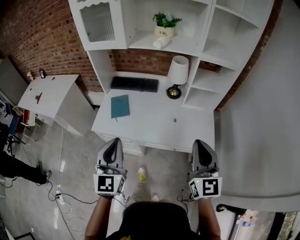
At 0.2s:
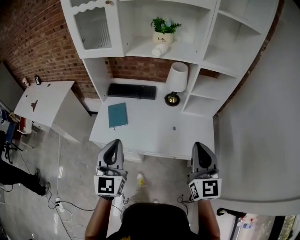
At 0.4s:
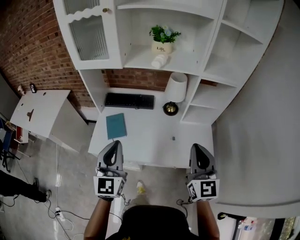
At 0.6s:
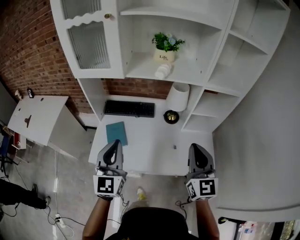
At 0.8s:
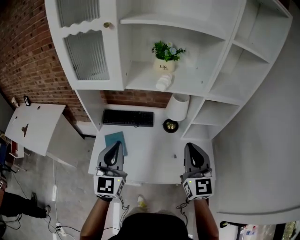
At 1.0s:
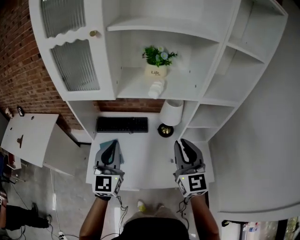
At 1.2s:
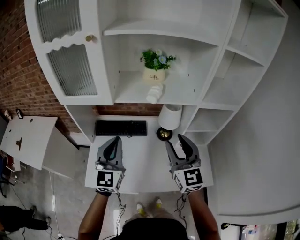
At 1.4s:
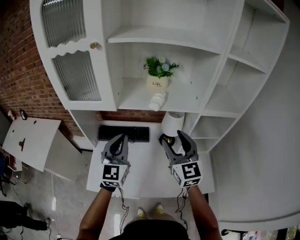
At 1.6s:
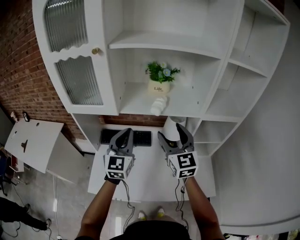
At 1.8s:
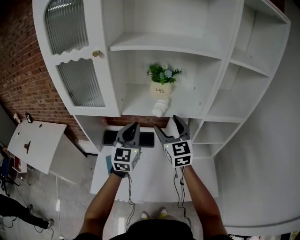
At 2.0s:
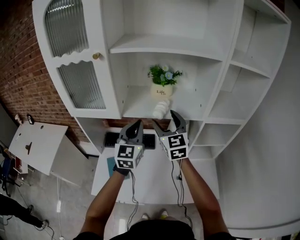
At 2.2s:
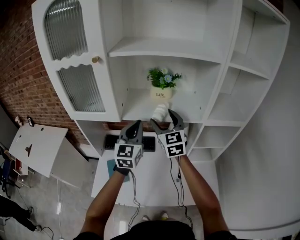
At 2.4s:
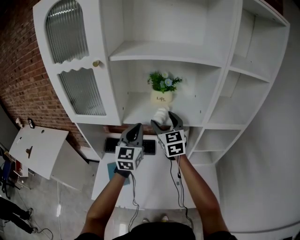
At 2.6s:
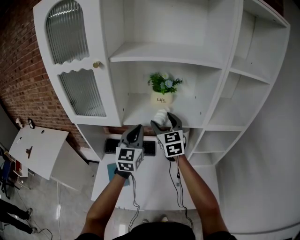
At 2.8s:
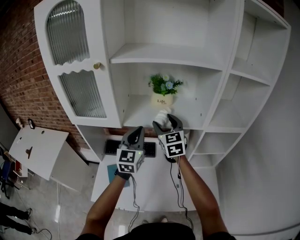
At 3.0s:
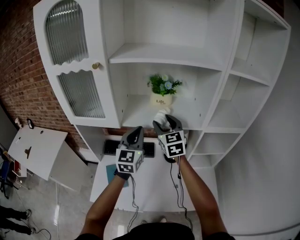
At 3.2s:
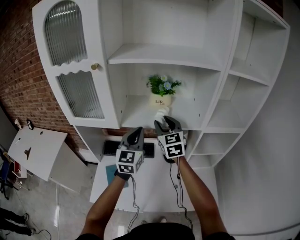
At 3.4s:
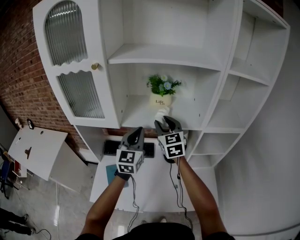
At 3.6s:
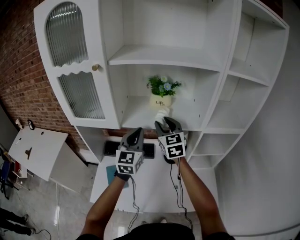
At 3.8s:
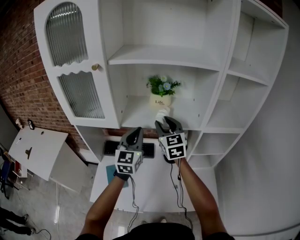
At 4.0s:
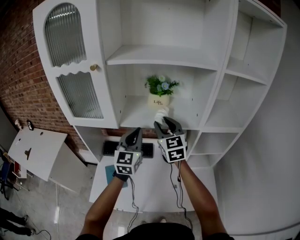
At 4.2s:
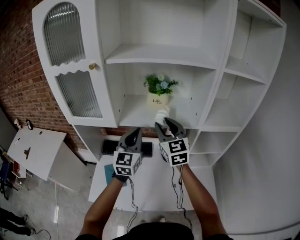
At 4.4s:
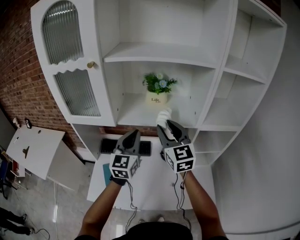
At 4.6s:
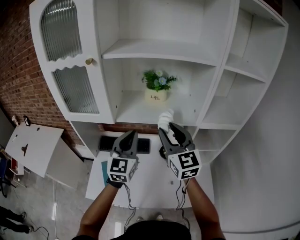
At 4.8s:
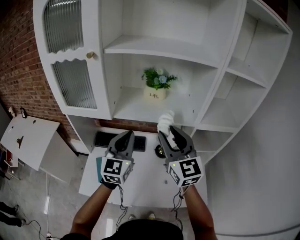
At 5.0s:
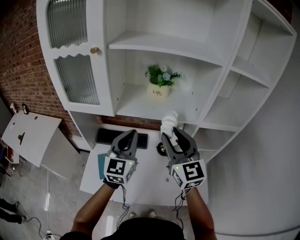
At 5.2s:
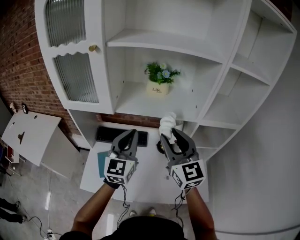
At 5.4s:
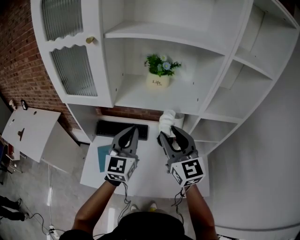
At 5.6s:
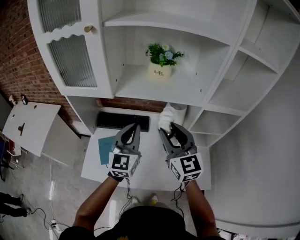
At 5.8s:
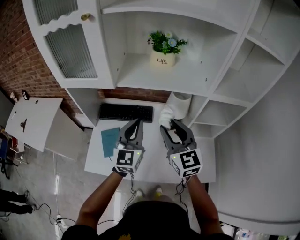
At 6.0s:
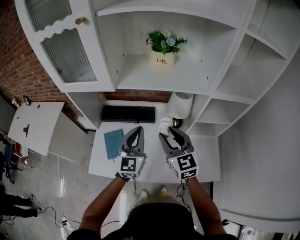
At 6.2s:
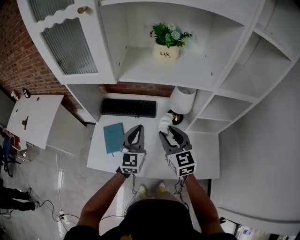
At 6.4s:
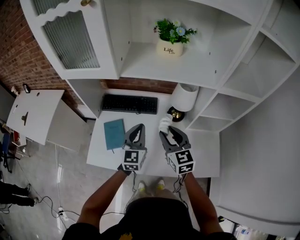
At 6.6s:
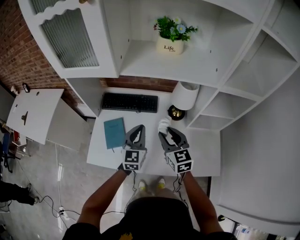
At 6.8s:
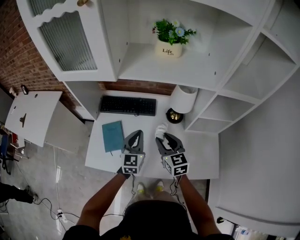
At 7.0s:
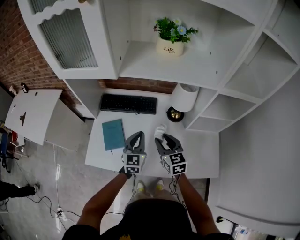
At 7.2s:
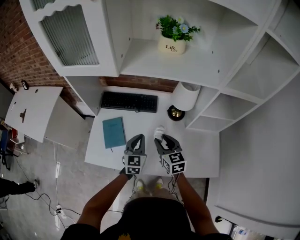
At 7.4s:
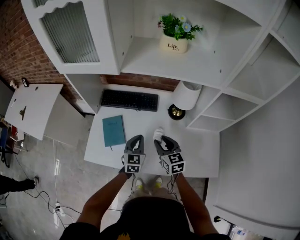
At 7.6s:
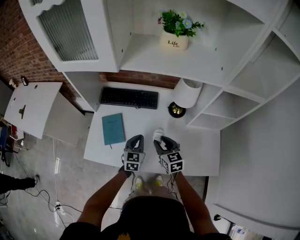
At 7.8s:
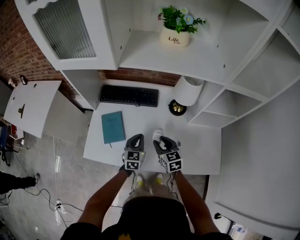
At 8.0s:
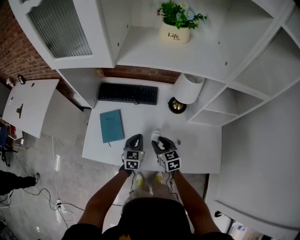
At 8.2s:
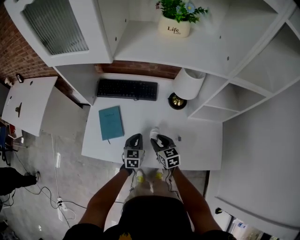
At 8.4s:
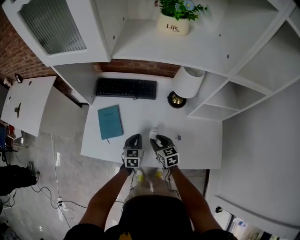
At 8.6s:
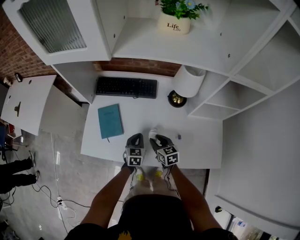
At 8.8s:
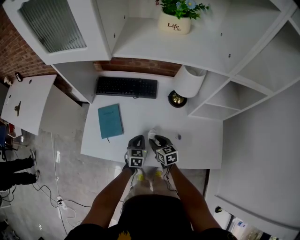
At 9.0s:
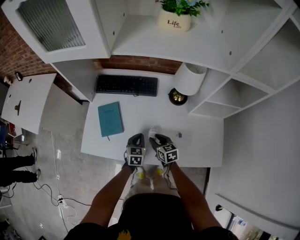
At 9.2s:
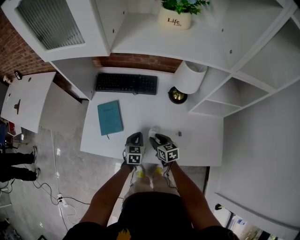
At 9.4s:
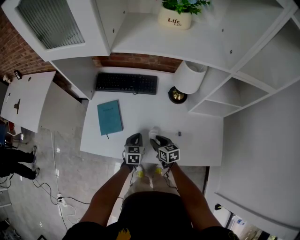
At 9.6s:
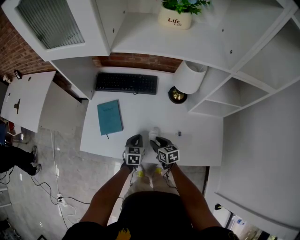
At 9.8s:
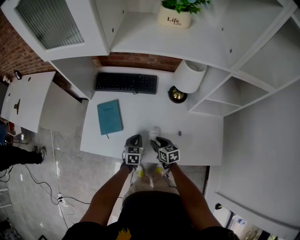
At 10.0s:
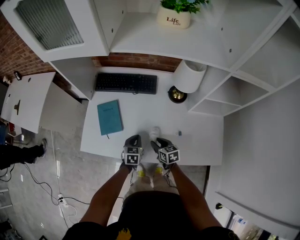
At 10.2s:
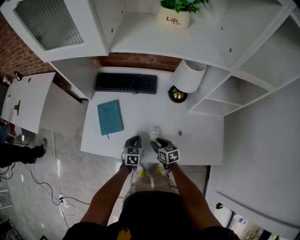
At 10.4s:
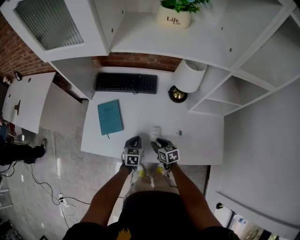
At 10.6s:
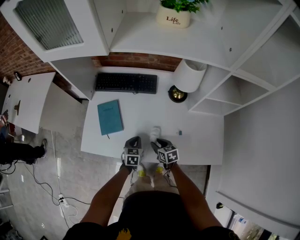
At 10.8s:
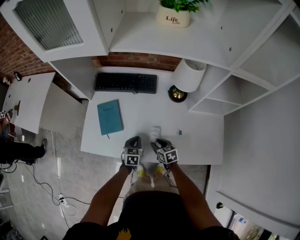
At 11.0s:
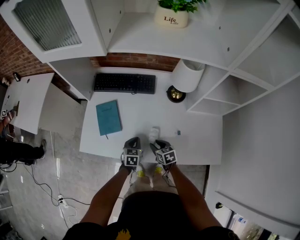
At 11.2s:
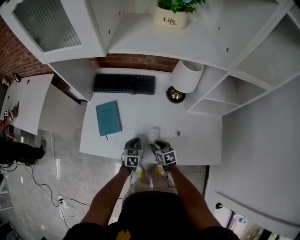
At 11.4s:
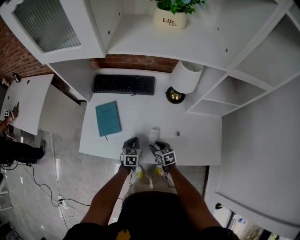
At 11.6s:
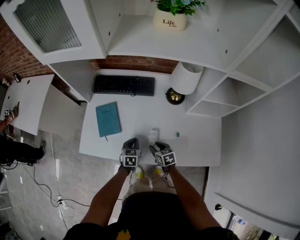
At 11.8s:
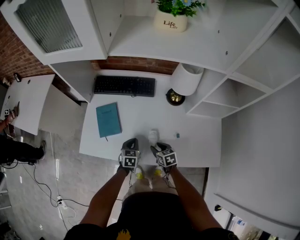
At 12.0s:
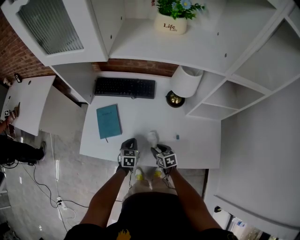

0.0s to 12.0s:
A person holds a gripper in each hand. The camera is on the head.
0.0s to 1.6s: The pair of grippers is taken forward, approximately 40 cm. The right gripper opens up.
1.6s to 3.0s: The left gripper shifts some 5 cm forward. Meanwhile the right gripper shifts approximately 15 cm forward.
3.0s to 4.4s: The right gripper shifts approximately 10 cm backward.
4.4s to 6.0s: Both grippers move downward and backward, about 15 cm.
6.0s to 7.6s: The two grippers go some 25 cm downward. The right gripper rotates some 20 degrees. Meanwhile the left gripper swivels about 30 degrees.
7.6s to 9.0s: Both grippers move downward, some 10 cm.
9.0s to 10.4s: The right gripper shifts by some 5 cm.
10.4s to 12.0s: There are only small adjustments of the grippers.

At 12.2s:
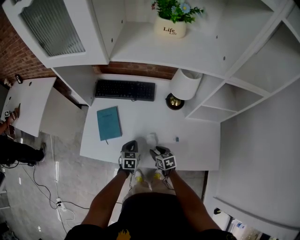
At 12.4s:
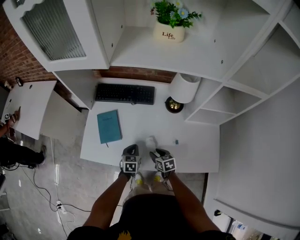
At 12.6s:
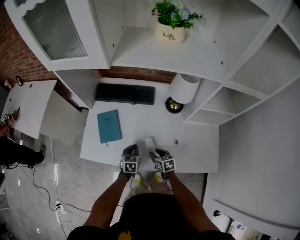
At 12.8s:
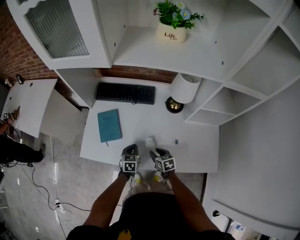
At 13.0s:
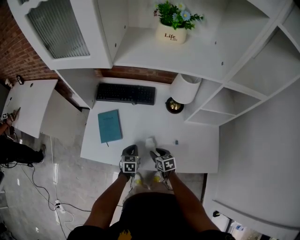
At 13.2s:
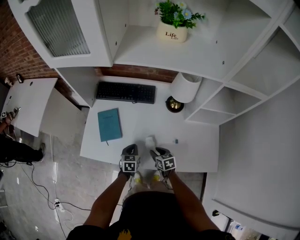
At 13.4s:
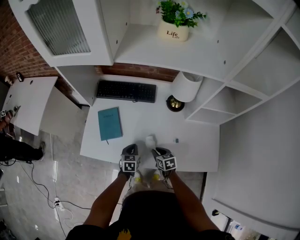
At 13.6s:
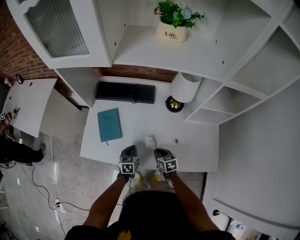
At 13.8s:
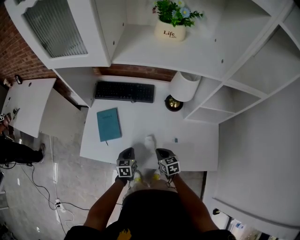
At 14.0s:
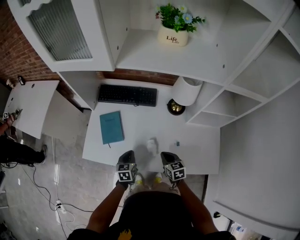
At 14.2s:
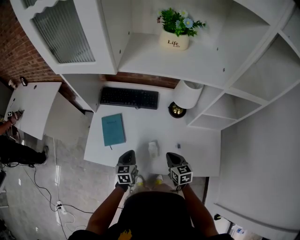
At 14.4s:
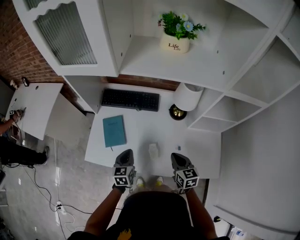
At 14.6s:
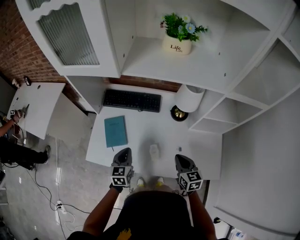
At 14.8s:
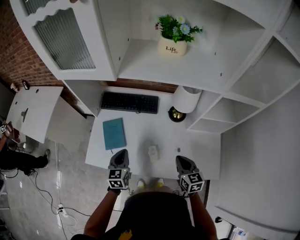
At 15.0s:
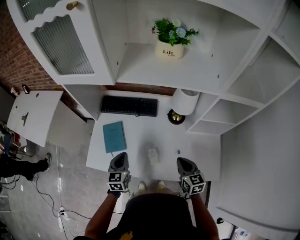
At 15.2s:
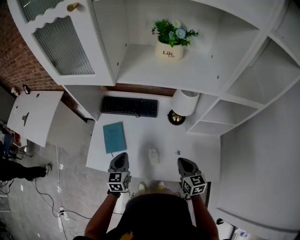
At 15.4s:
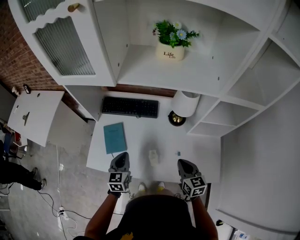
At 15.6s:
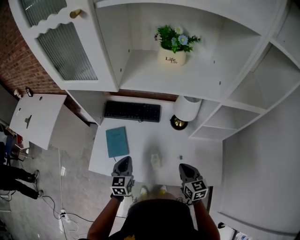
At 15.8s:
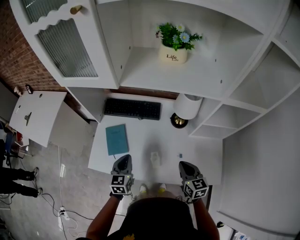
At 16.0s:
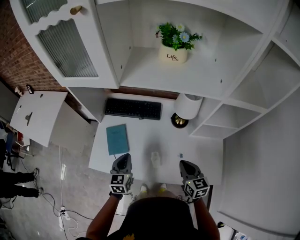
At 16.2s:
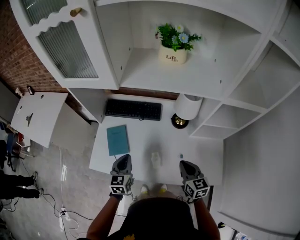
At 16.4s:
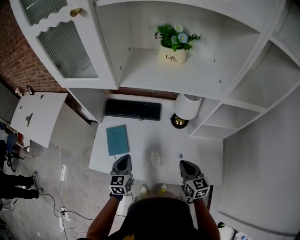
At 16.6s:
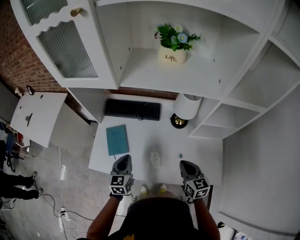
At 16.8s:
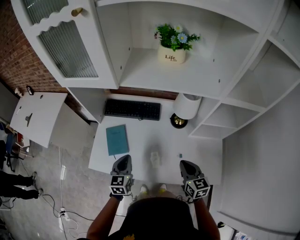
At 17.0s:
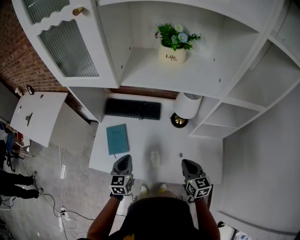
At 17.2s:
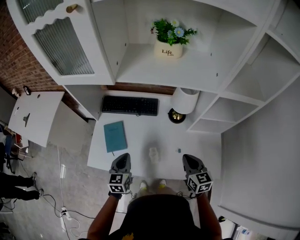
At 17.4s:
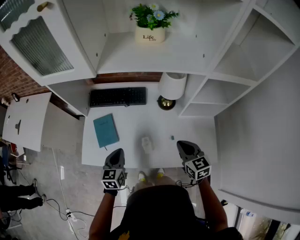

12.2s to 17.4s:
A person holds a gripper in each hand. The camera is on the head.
12.2s to 14.0s: The right gripper moves upward, roughly 10 cm, and closes its fingers. The left gripper shifts by approximately 5 cm.
14.0s to 15.6s: The right gripper heads upward and to the right, covering about 15 cm. Meanwhile the left gripper shifts some 15 cm upward.
15.6s to 17.4s: The grippers make only small movements.

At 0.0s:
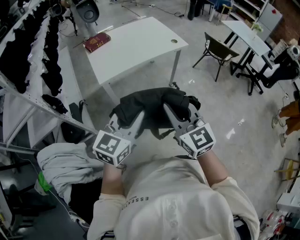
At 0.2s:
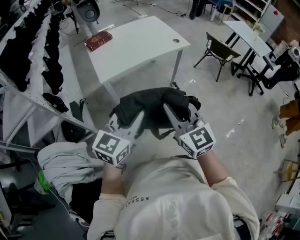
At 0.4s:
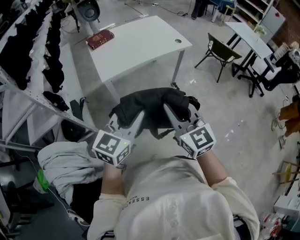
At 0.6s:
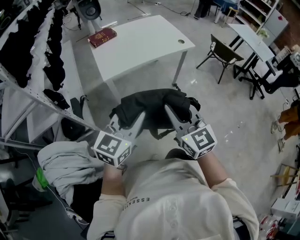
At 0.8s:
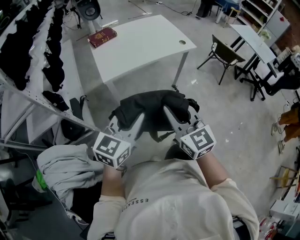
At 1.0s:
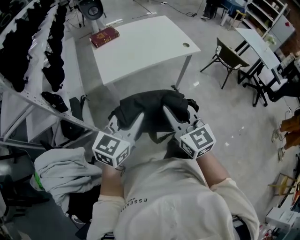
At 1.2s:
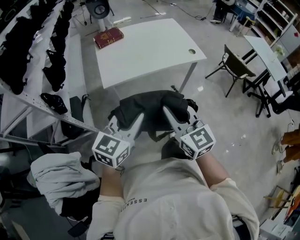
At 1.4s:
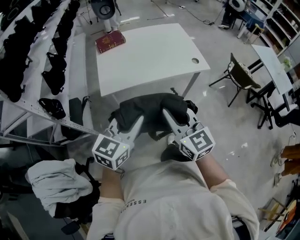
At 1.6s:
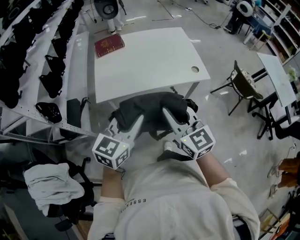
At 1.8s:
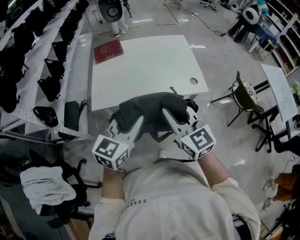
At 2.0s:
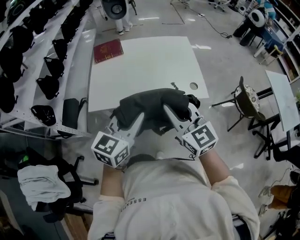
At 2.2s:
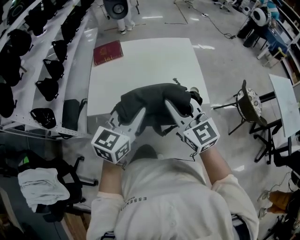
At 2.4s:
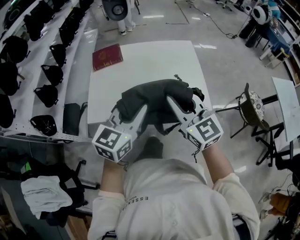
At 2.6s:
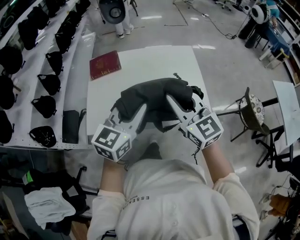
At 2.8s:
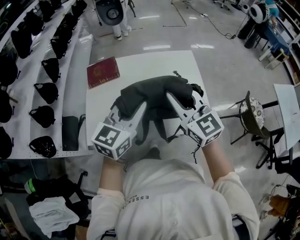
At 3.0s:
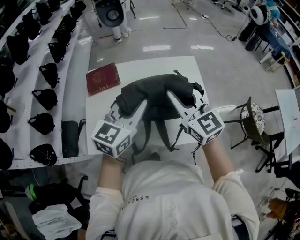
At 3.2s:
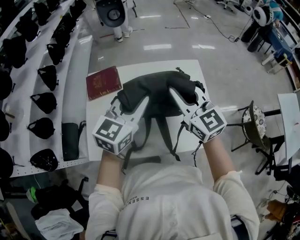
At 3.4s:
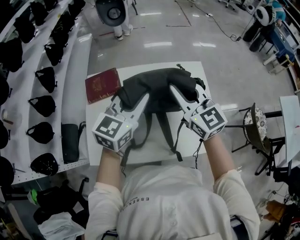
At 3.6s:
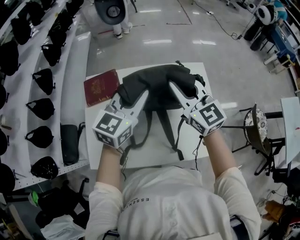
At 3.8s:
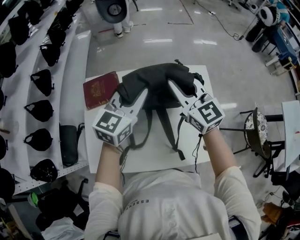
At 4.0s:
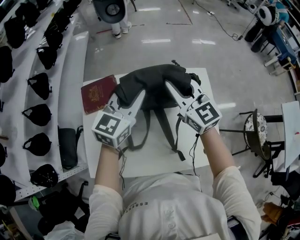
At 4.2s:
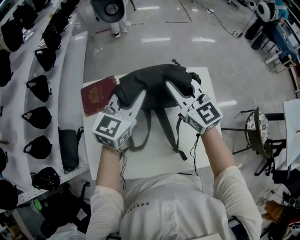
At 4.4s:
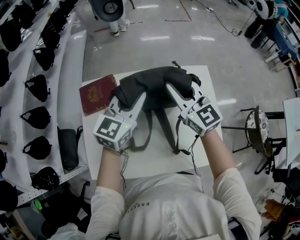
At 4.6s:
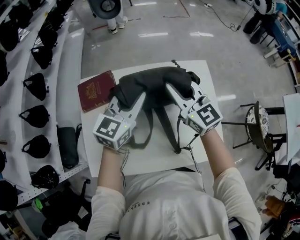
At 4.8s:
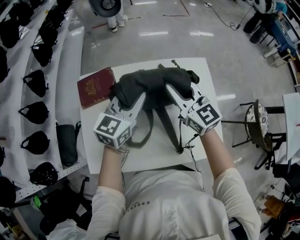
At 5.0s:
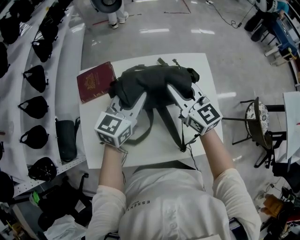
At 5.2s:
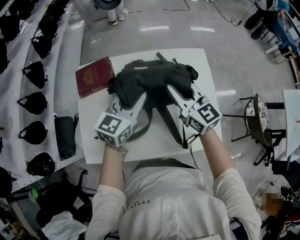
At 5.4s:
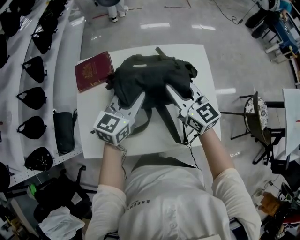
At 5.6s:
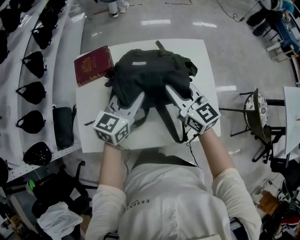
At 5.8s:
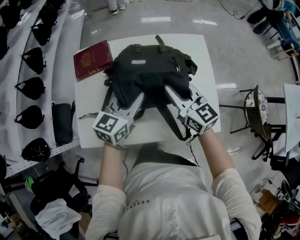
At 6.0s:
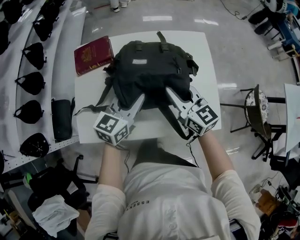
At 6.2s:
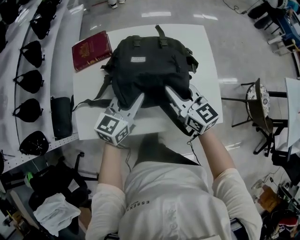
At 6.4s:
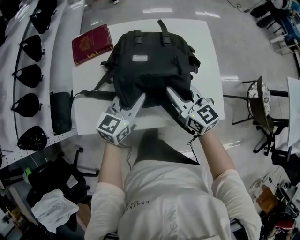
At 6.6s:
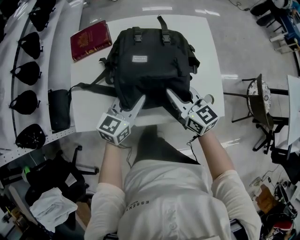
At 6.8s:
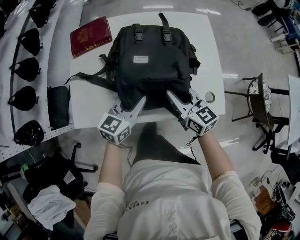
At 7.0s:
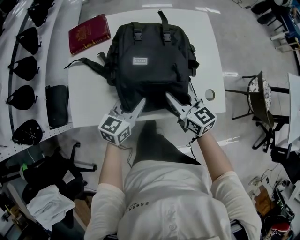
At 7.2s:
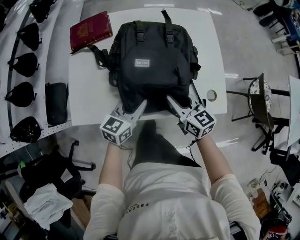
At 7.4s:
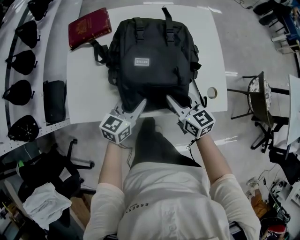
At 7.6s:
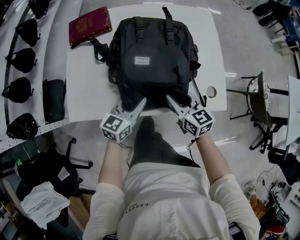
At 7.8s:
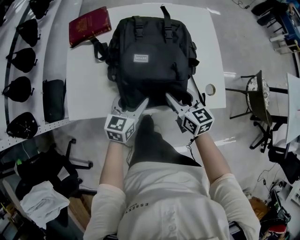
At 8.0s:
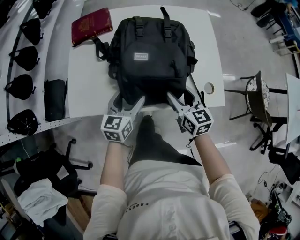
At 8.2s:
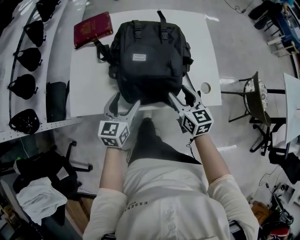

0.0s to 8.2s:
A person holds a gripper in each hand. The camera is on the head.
0.0s to 1.6s: The two grippers go approximately 25 cm forward.
1.6s to 3.2s: The two grippers travel together, forward, roughly 50 cm.
3.2s to 5.0s: Both grippers travel together downward and forward, about 15 cm.
5.0s to 6.6s: Both grippers travel together backward and downward, some 20 cm.
6.6s to 8.2s: The left gripper goes approximately 10 cm backward, and opens its fingers. The right gripper travels backward and downward by about 10 cm, and opens its fingers.
